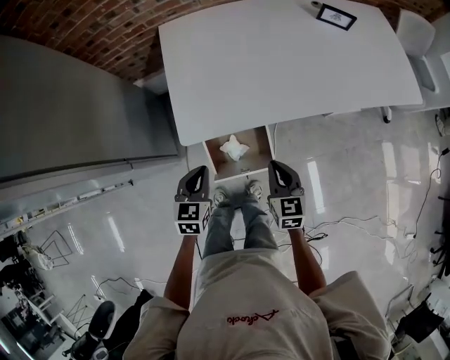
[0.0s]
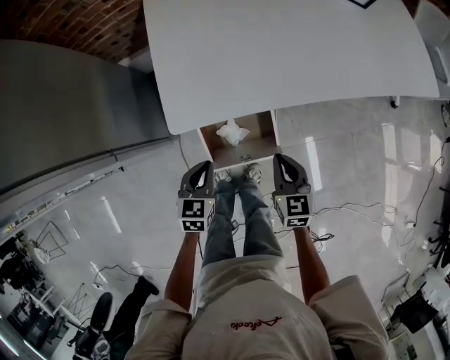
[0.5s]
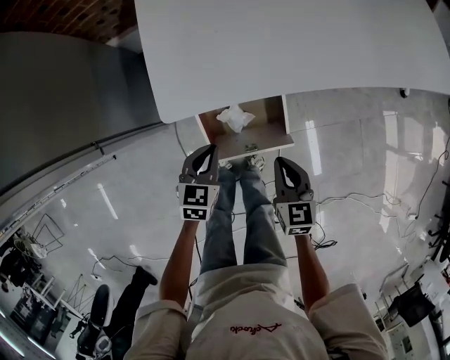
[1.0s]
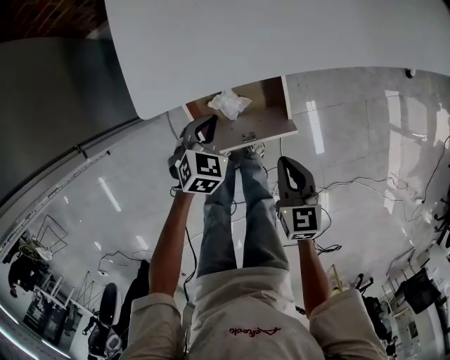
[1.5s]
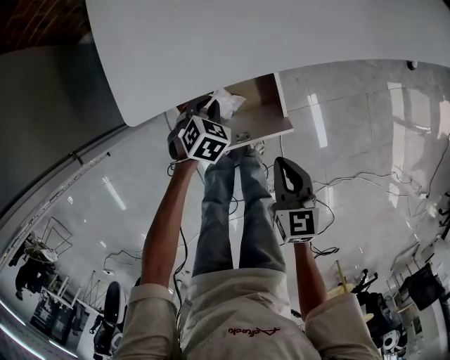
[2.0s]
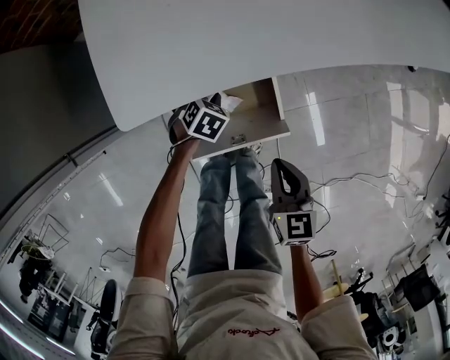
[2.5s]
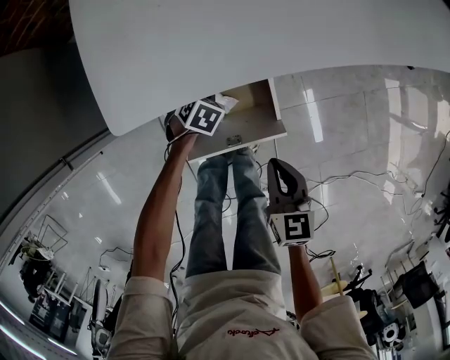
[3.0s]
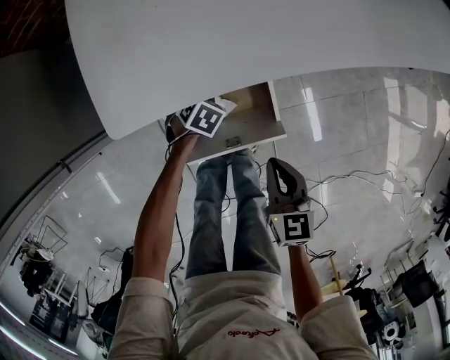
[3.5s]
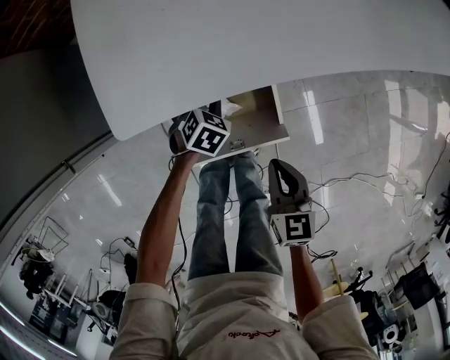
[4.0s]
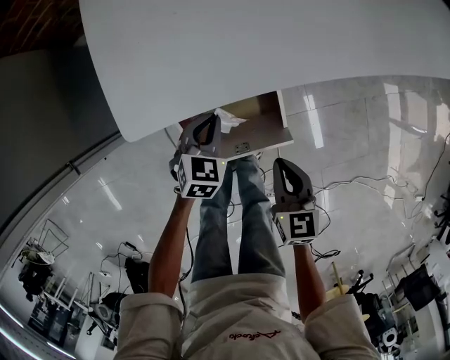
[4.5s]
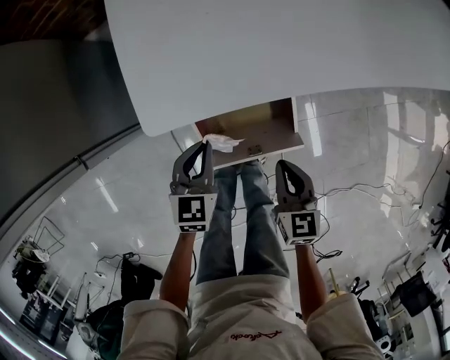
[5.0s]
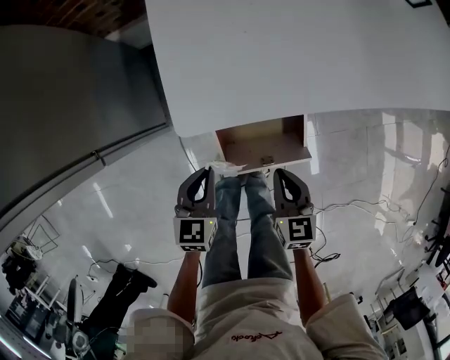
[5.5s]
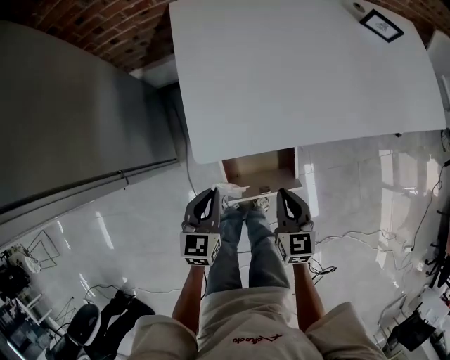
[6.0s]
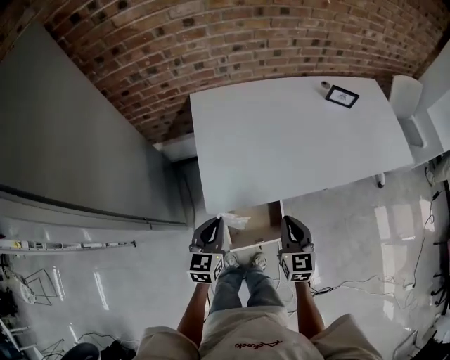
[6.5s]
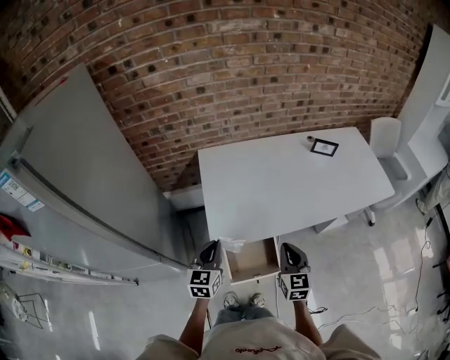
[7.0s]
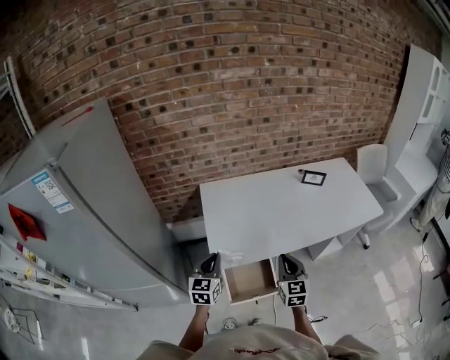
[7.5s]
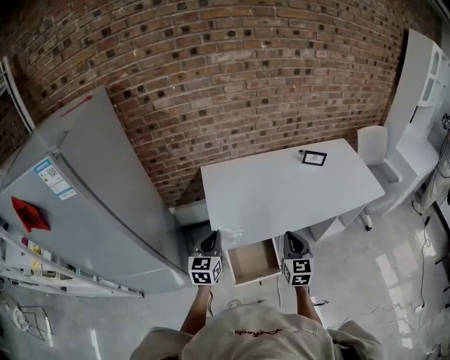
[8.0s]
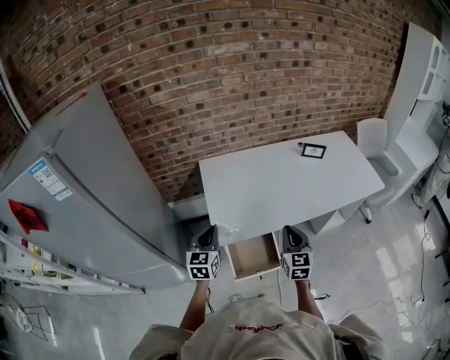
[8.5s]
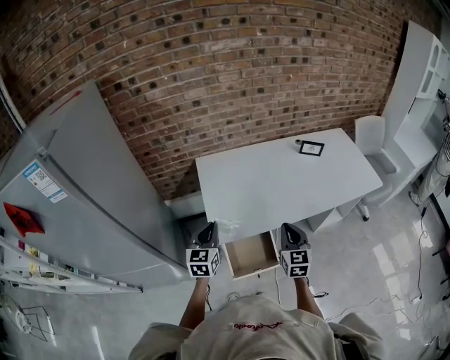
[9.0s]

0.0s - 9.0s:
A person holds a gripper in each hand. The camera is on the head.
0.0s - 2.0s: The right gripper travels downward and backward by approximately 20 cm. Meanwhile the left gripper moves downward, about 30 cm, and tilts its fingers roughly 30 degrees downward.
2.0s - 4.5s: The left gripper is displaced upward by some 5 cm, and opens, then closes again.
4.5s - 7.0s: The two grippers go about 35 cm upward. The right gripper swivels some 30 degrees, while the left gripper tilts its fingers roughly 30 degrees upward.
7.0s - 9.0s: Both grippers travel together upward, some 5 cm.

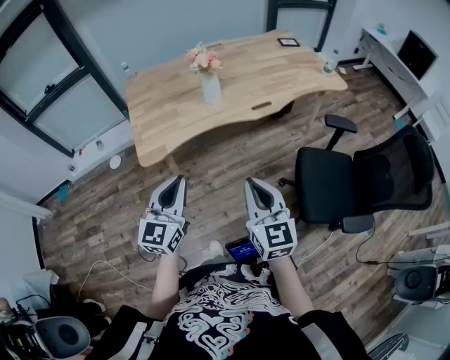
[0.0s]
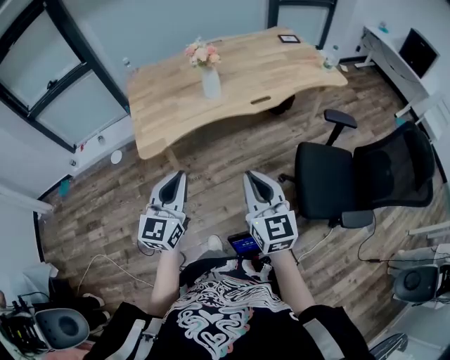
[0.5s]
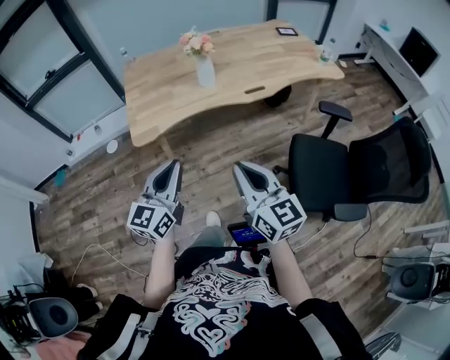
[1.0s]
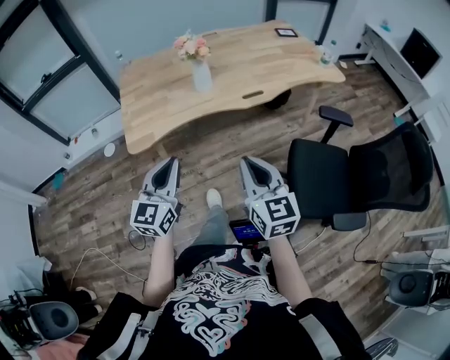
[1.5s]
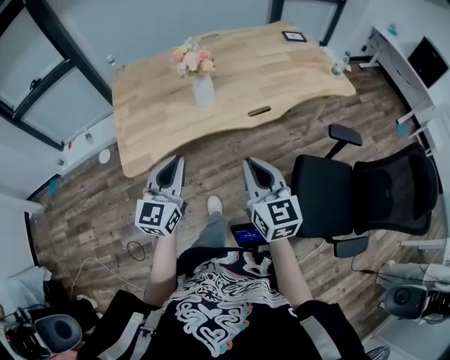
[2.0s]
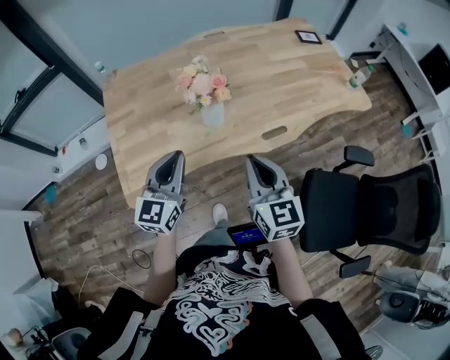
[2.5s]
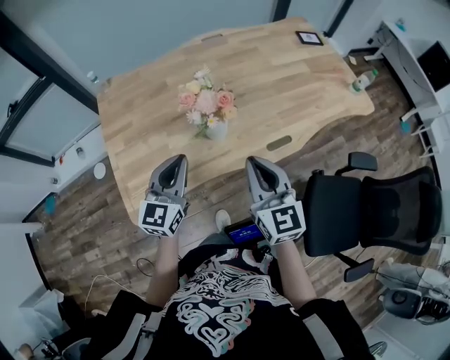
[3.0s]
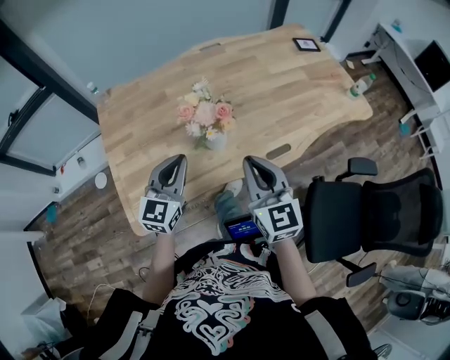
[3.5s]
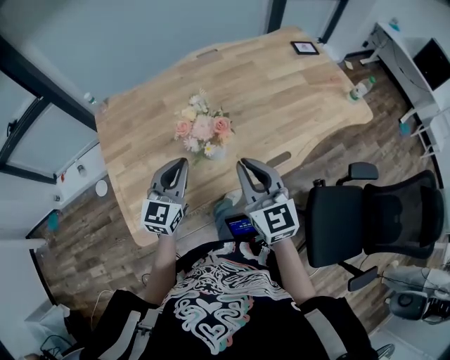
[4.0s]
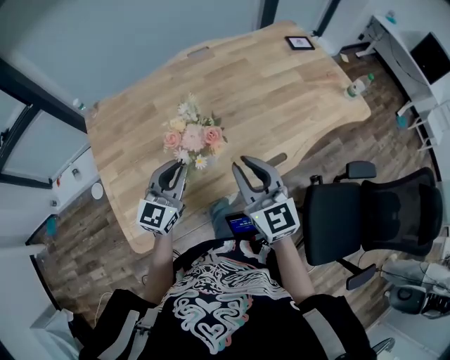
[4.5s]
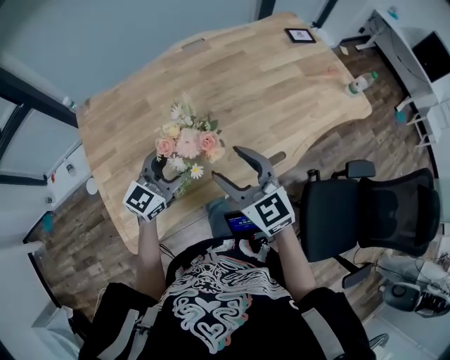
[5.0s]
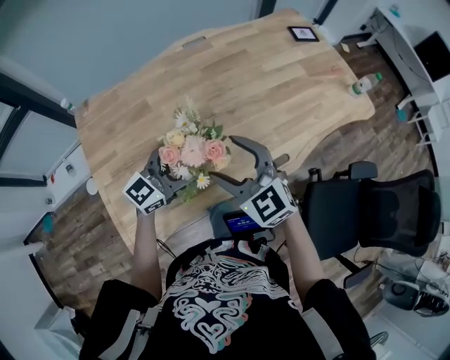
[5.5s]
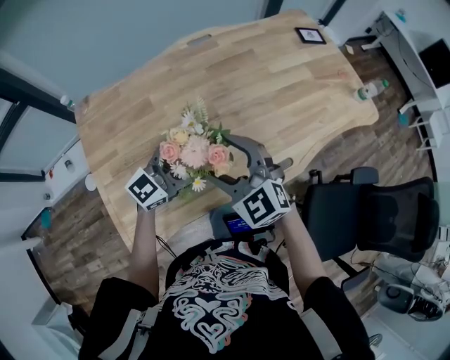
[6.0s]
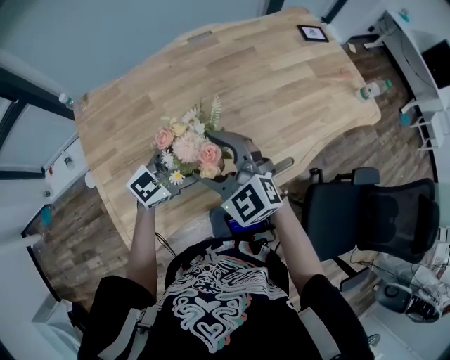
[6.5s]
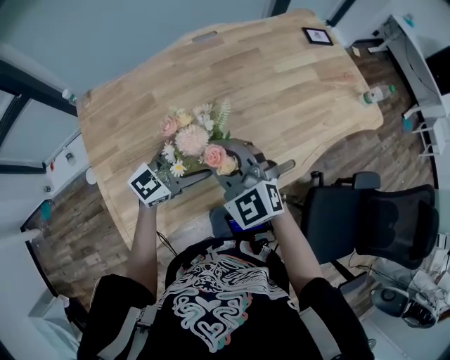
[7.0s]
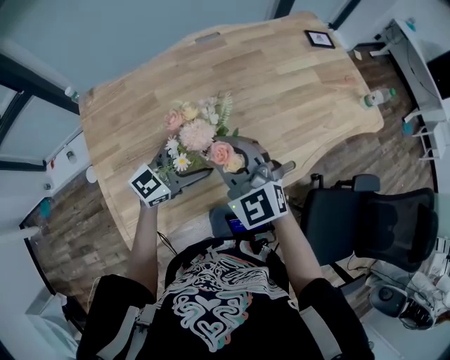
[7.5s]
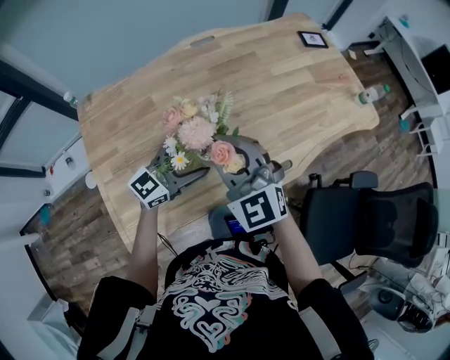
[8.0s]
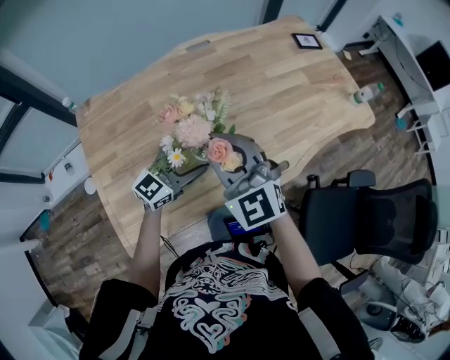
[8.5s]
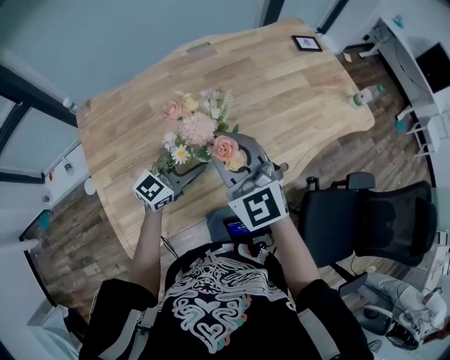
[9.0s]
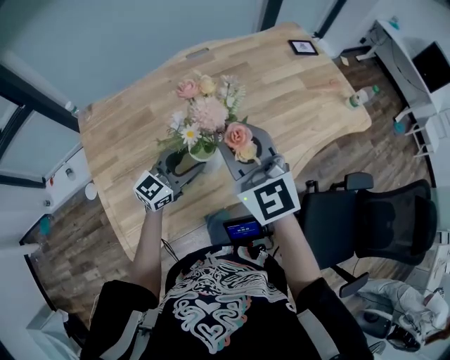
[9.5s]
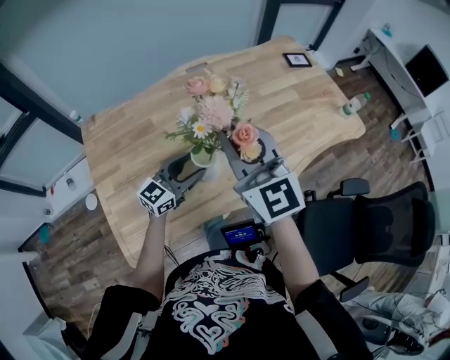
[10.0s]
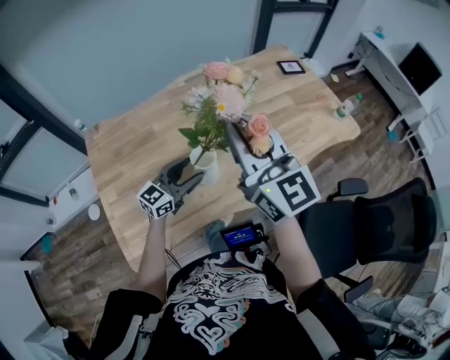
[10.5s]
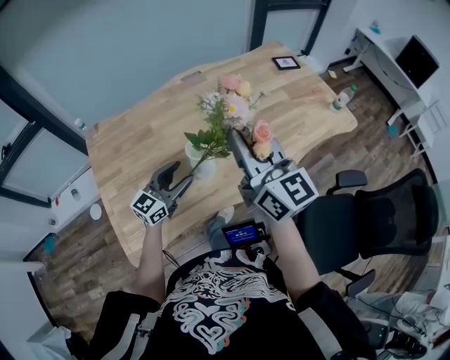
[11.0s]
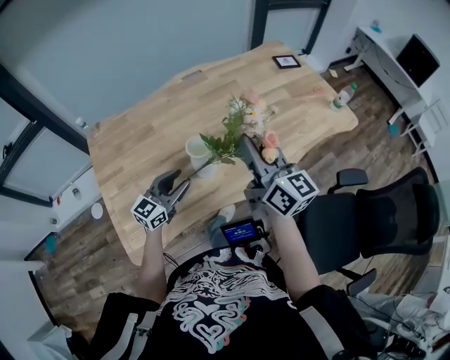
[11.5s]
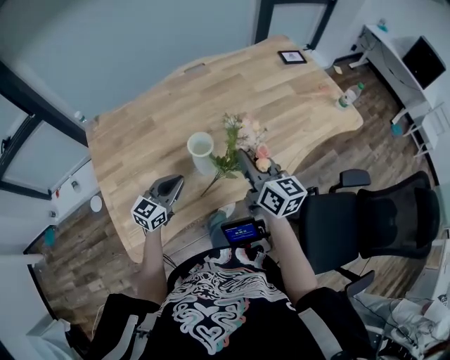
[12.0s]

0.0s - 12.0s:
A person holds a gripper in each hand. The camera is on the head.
0.0s - 2.0s: Both grippers travel together forward, some 15 cm.
2.0s - 4.0s: Both grippers travel together forward, about 30 cm.
4.0s - 6.0s: The left gripper moves forward, roughly 10 cm, changes its angle by about 40 degrees, and opens. Meanwhile the right gripper heads forward and to the left, covering about 15 cm, turns by some 30 degrees, and opens its fingers.
6.0s - 8.0s: The right gripper shifts roughly 5 cm upward, and closes up.
8.0s - 10.0s: The right gripper travels upward by approximately 10 cm, and changes its angle by some 20 degrees.
10.0s - 12.0s: The right gripper travels downward and to the right by some 15 cm, and changes its angle by approximately 40 degrees; the left gripper goes roughly 5 cm backward, and closes up.

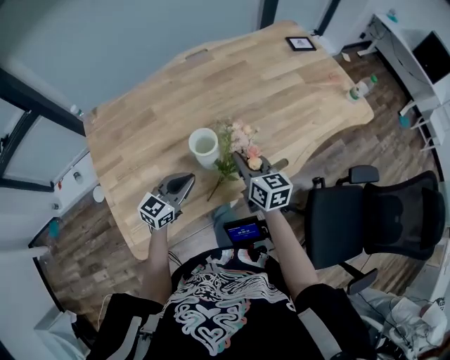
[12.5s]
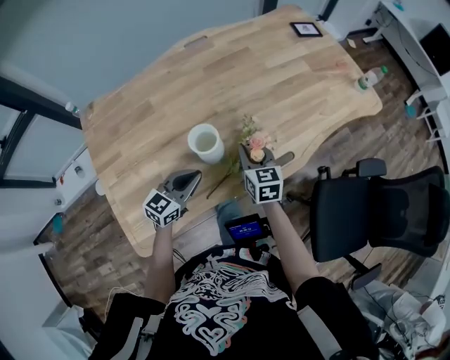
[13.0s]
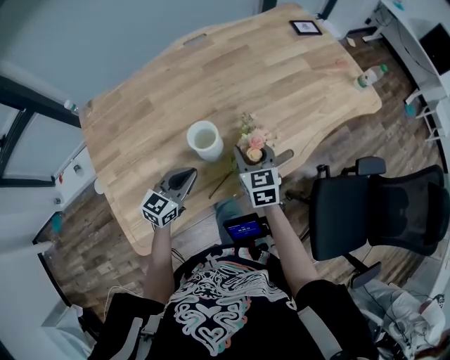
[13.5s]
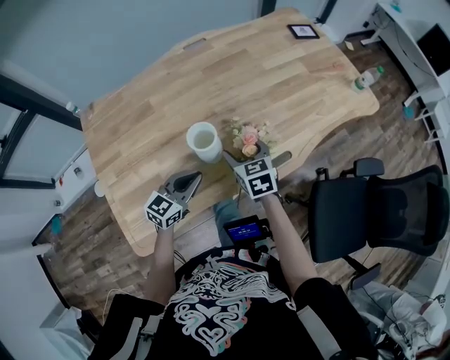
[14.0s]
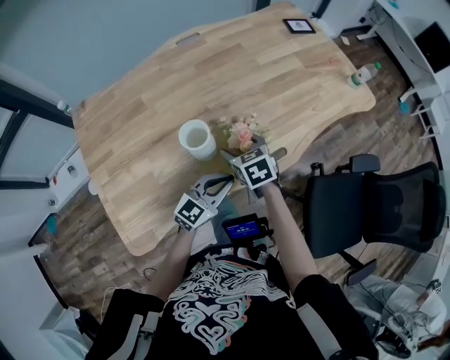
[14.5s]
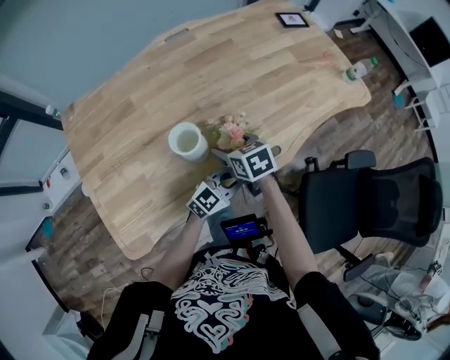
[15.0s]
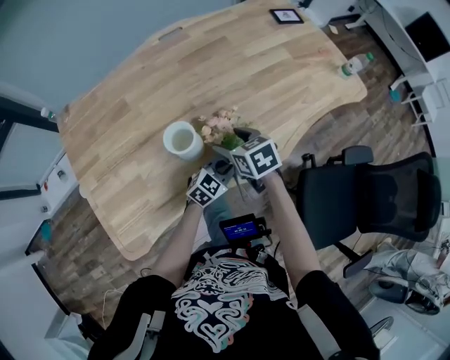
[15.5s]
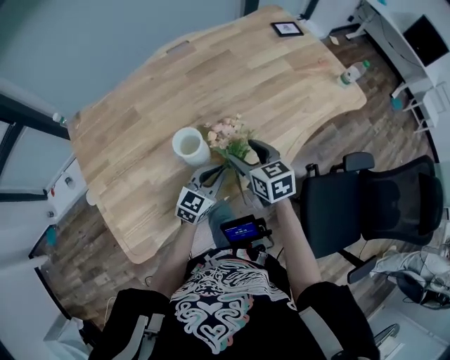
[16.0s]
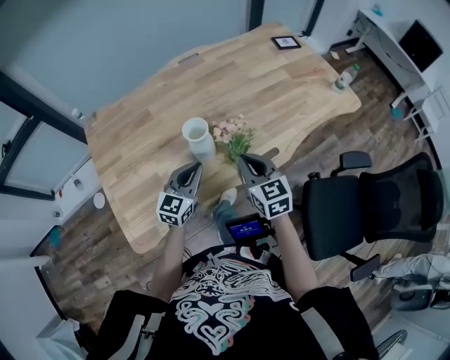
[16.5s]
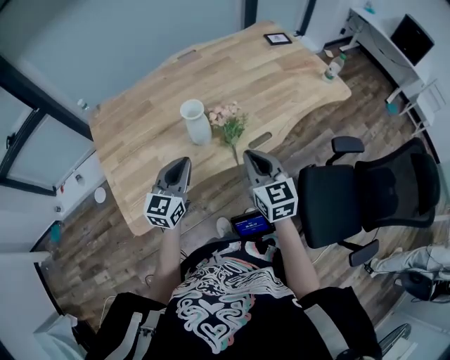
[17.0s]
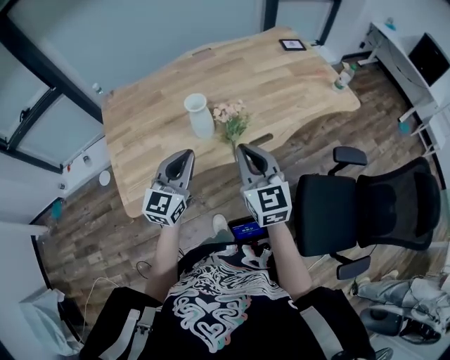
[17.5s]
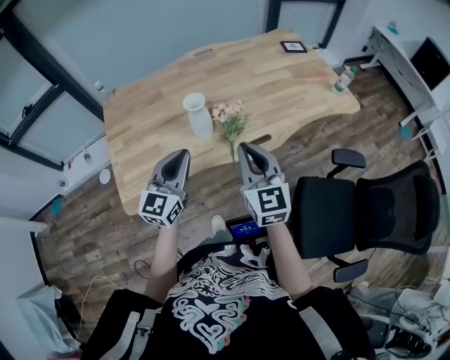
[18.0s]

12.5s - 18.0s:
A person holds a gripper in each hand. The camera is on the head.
12.5s - 14.5s: The right gripper travels downward by approximately 5 cm, rotates approximately 30 degrees, and opens, while the left gripper is displaced to the right by roughly 15 cm.
14.5s - 16.0s: The right gripper moves some 5 cm.
16.0s - 18.0s: The two grippers go some 30 cm upward and backward. The left gripper rotates roughly 30 degrees. Meanwhile the right gripper turns by approximately 30 degrees, and closes its fingers.
